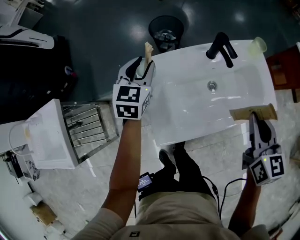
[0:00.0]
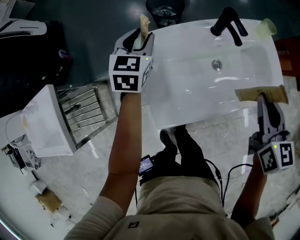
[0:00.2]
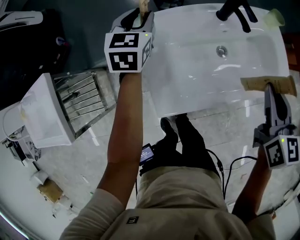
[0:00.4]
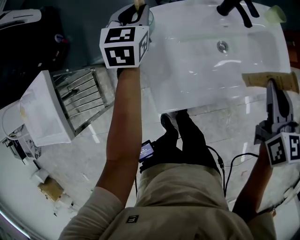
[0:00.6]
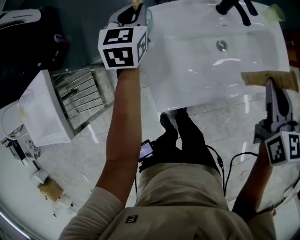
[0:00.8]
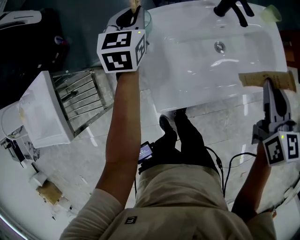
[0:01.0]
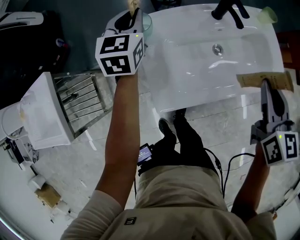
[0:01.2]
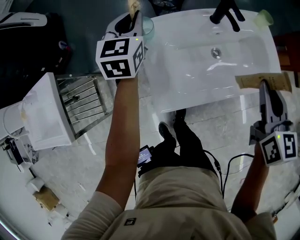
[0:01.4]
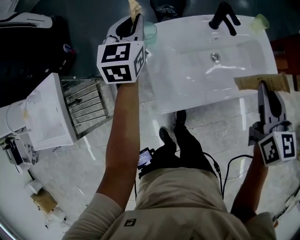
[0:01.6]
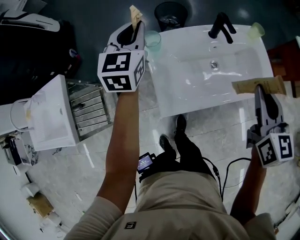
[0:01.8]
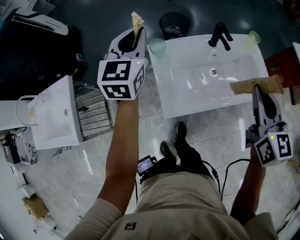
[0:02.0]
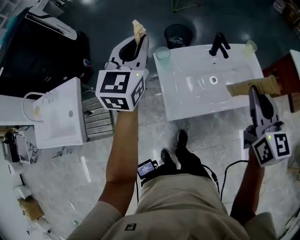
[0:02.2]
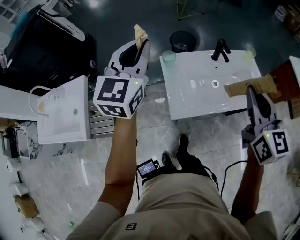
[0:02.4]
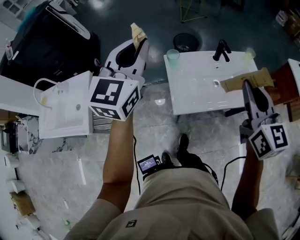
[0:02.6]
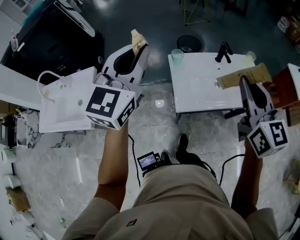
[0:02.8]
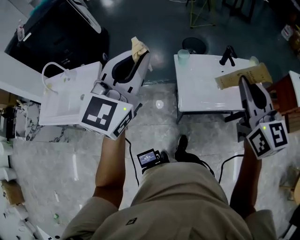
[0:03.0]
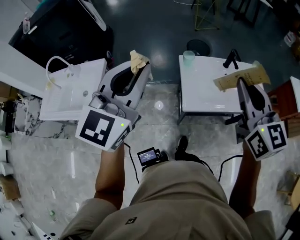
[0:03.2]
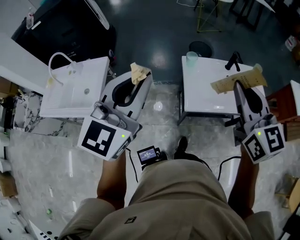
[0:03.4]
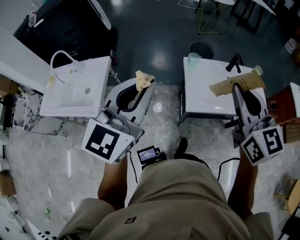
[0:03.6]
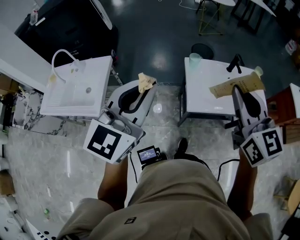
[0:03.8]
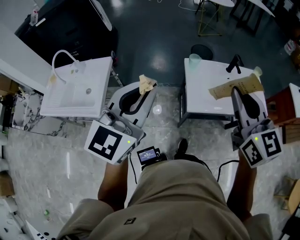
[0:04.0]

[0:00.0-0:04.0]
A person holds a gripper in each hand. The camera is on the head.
0:00.0 to 0:01.4: The left gripper closes.
0:01.4 to 0:02.6: The right gripper is displaced upward, backward and to the left by roughly 25 cm, and turns by some 20 degrees. Meanwhile the left gripper goes roughly 40 cm upward and backward, and swivels about 20 degrees.
0:02.6 to 0:04.0: The right gripper heads to the left and backward, covering roughly 20 cm, while the left gripper goes approximately 25 cm backward and to the left.

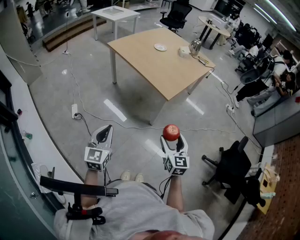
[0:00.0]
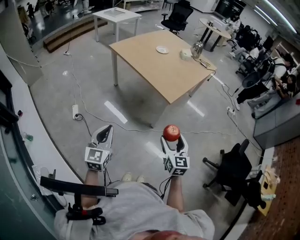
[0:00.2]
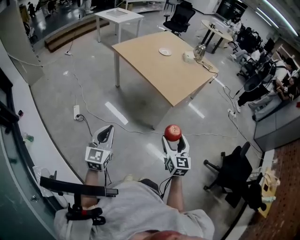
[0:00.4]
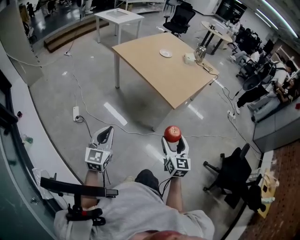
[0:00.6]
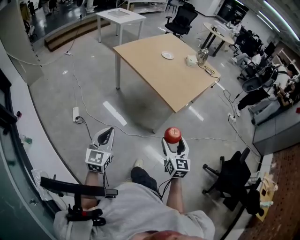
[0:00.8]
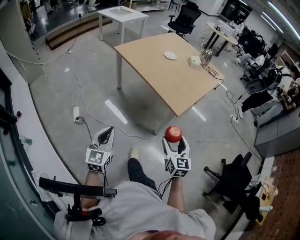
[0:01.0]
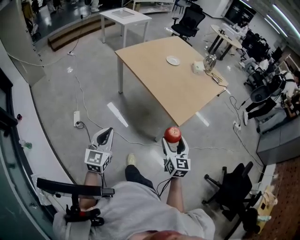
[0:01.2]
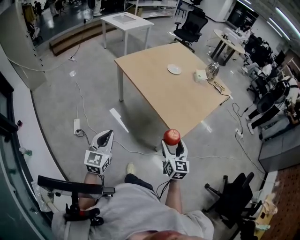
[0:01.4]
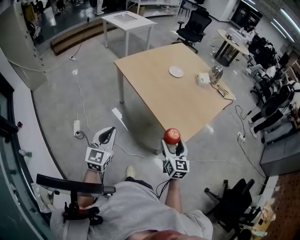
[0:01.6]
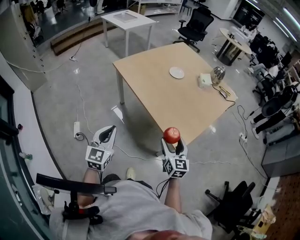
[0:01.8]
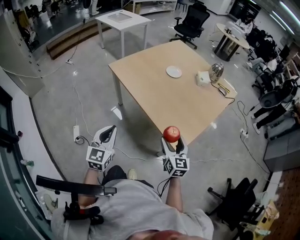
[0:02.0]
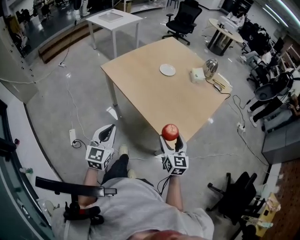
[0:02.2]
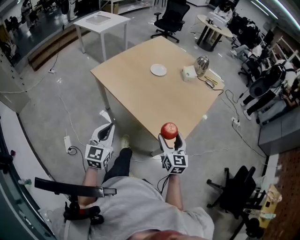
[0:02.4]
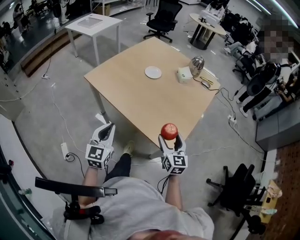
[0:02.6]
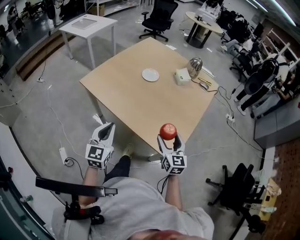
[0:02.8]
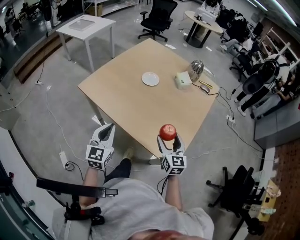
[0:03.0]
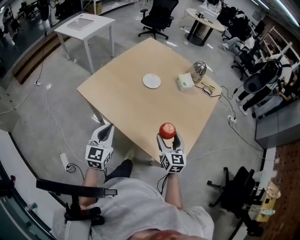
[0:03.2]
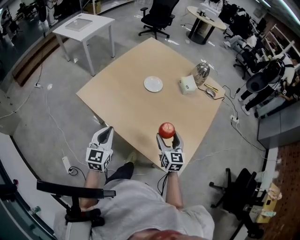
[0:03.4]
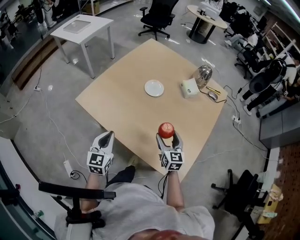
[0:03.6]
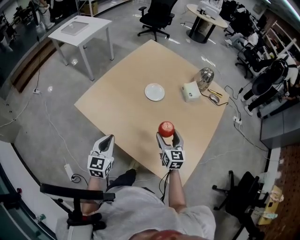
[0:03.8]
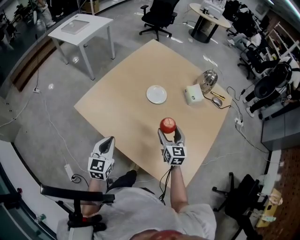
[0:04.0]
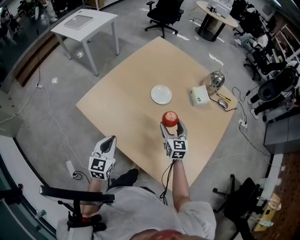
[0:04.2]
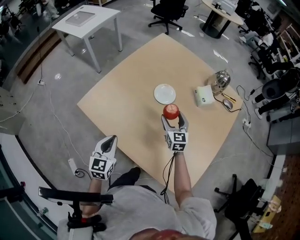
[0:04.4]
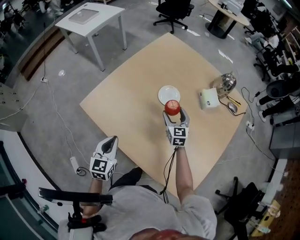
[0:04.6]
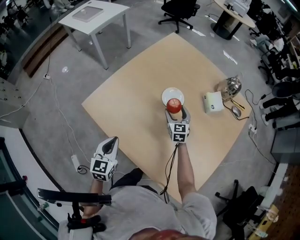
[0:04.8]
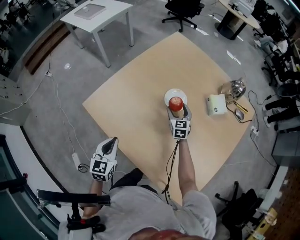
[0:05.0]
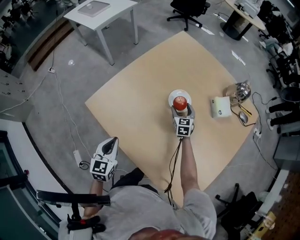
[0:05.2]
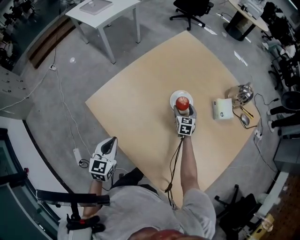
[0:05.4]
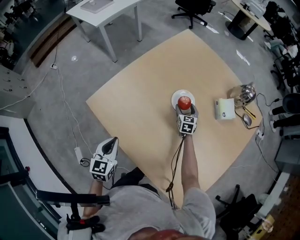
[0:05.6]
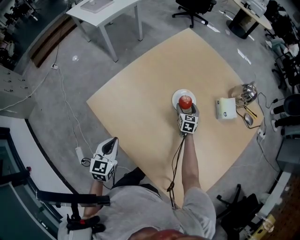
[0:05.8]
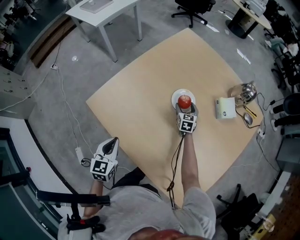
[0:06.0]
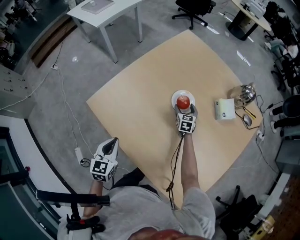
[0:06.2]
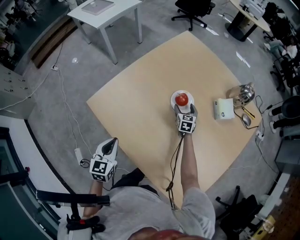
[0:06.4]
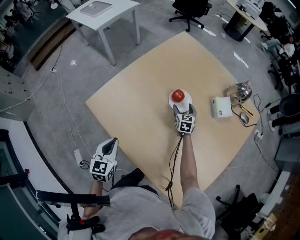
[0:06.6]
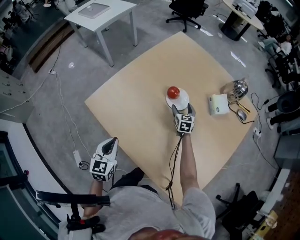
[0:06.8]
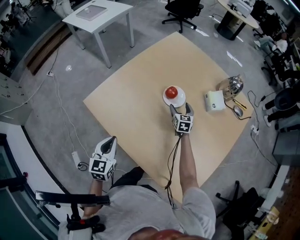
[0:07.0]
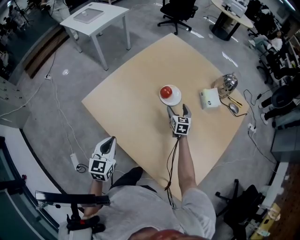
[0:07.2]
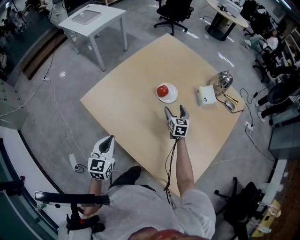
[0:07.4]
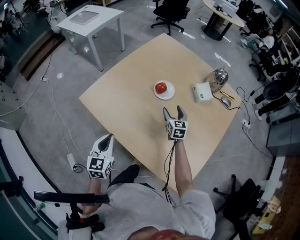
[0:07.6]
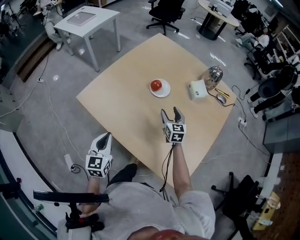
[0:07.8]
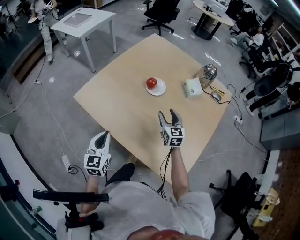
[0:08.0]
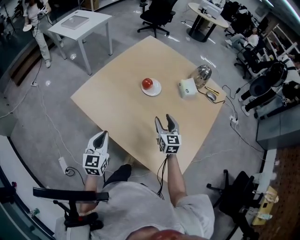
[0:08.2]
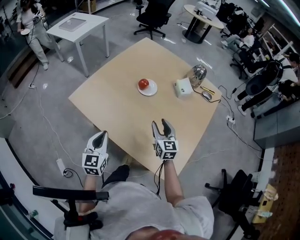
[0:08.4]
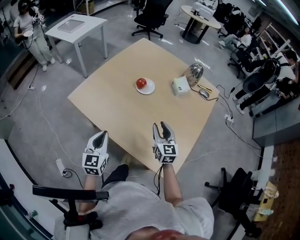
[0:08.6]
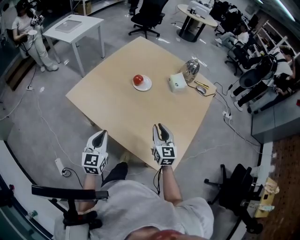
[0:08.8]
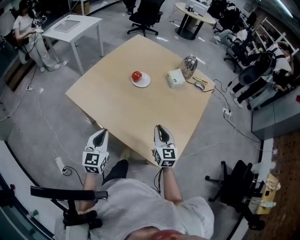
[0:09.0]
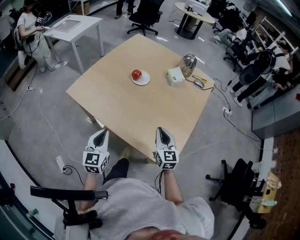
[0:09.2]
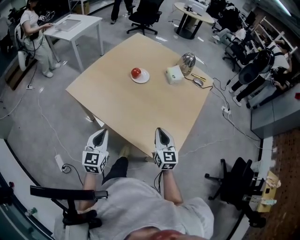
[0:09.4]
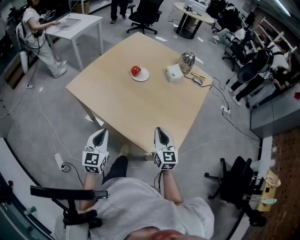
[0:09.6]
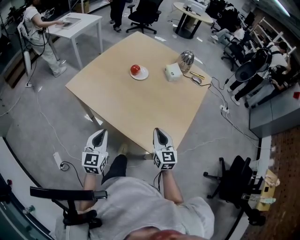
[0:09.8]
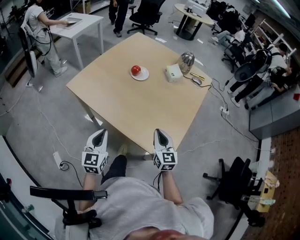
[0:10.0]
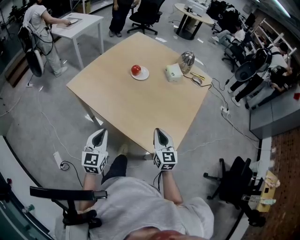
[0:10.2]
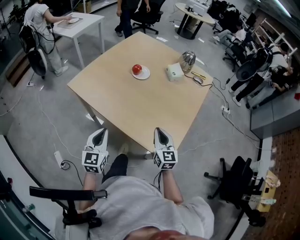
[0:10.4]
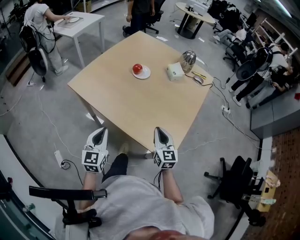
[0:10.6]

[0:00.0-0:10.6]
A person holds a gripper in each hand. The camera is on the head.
0:00.0 to 0:01.6: Both grippers move forward, roughly 35 cm.
0:01.6 to 0:03.0: Both grippers move forward, some 25 cm.
0:03.0 to 0:04.6: The right gripper is displaced forward by some 40 cm; the left gripper is displaced forward and downward by roughly 25 cm.
0:04.6 to 0:06.0: The left gripper shifts by approximately 5 cm, while the right gripper travels downward and forward by approximately 20 cm.
0:06.0 to 0:07.6: The left gripper is displaced backward and upward by roughly 10 cm. Meanwhile the right gripper goes approximately 20 cm backward and upward.
0:07.6 to 0:09.0: The right gripper moves backward, approximately 30 cm, and closes its fingers, while the left gripper moves backward and to the right, some 10 cm.
0:09.0 to 0:10.6: The grippers both shift backward by some 10 cm.

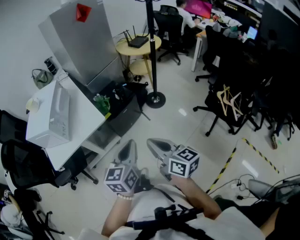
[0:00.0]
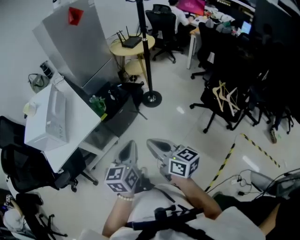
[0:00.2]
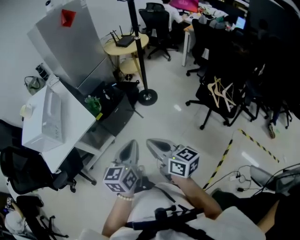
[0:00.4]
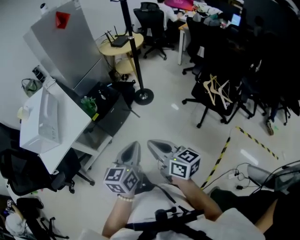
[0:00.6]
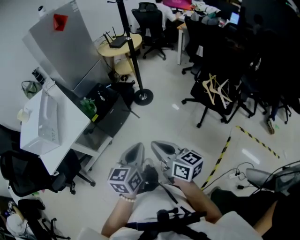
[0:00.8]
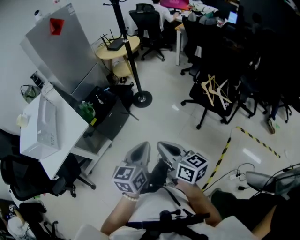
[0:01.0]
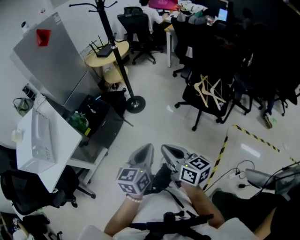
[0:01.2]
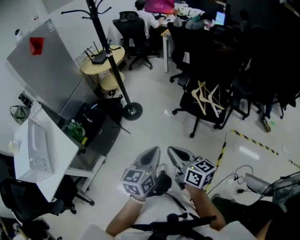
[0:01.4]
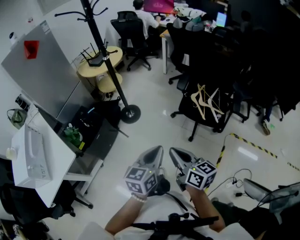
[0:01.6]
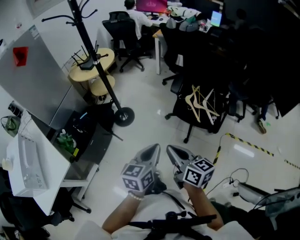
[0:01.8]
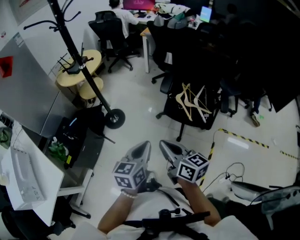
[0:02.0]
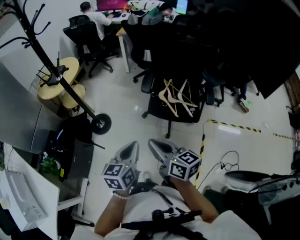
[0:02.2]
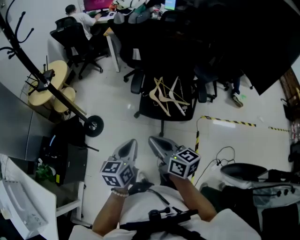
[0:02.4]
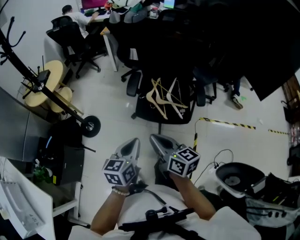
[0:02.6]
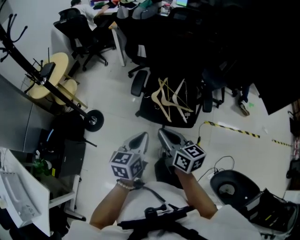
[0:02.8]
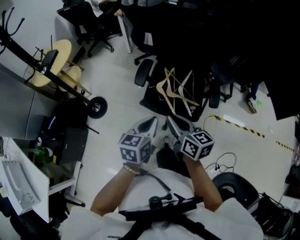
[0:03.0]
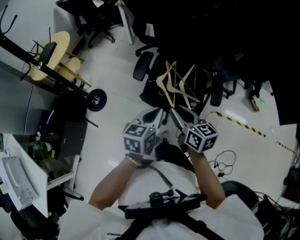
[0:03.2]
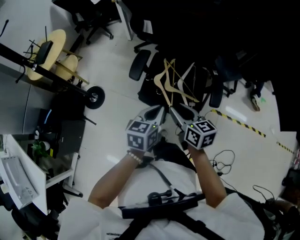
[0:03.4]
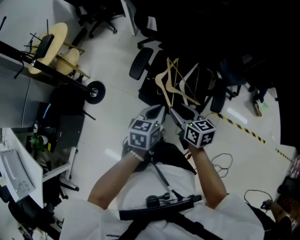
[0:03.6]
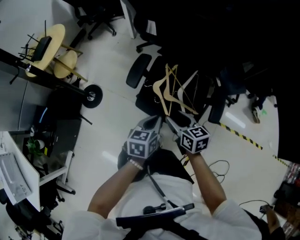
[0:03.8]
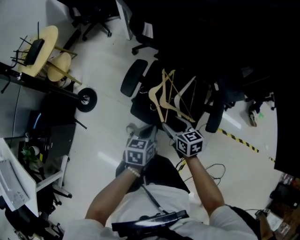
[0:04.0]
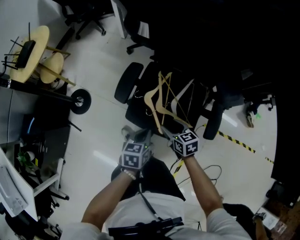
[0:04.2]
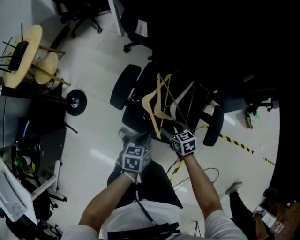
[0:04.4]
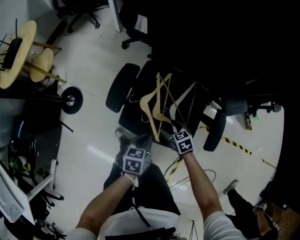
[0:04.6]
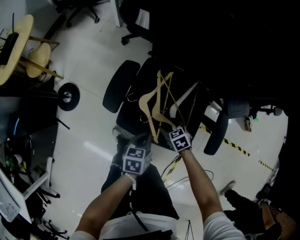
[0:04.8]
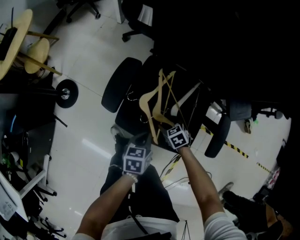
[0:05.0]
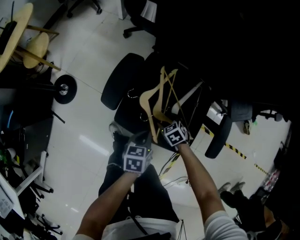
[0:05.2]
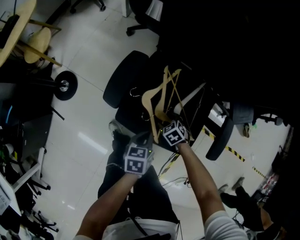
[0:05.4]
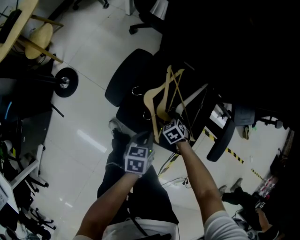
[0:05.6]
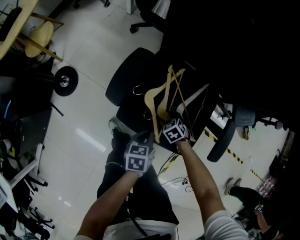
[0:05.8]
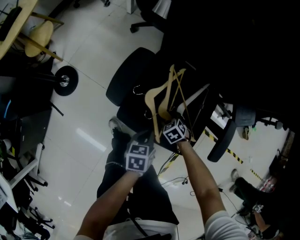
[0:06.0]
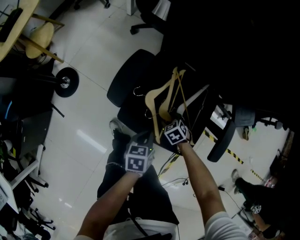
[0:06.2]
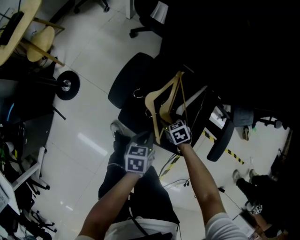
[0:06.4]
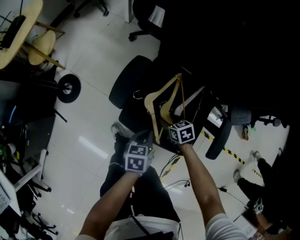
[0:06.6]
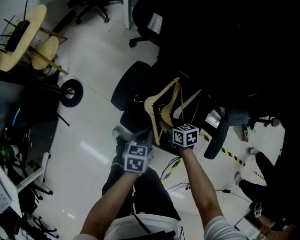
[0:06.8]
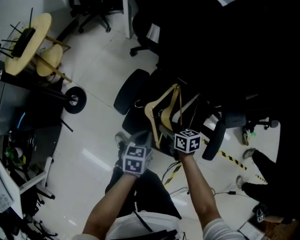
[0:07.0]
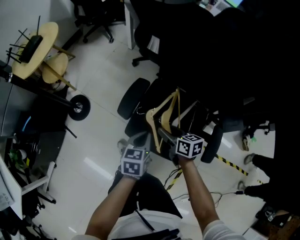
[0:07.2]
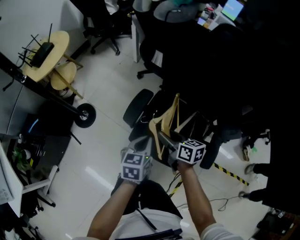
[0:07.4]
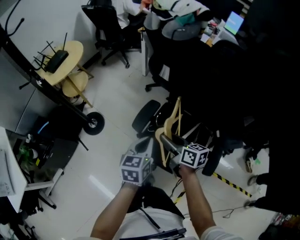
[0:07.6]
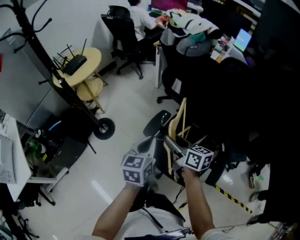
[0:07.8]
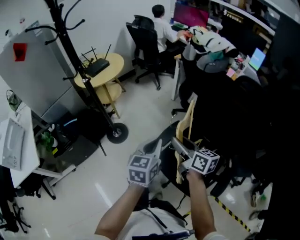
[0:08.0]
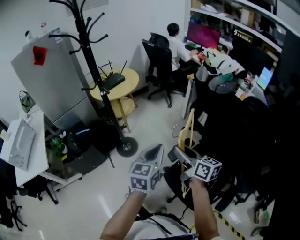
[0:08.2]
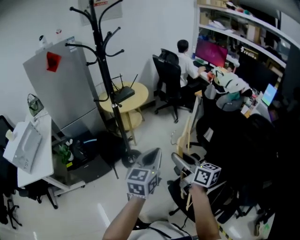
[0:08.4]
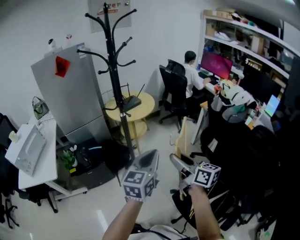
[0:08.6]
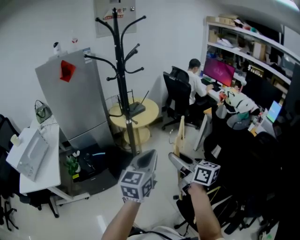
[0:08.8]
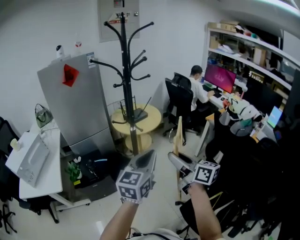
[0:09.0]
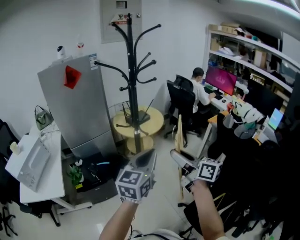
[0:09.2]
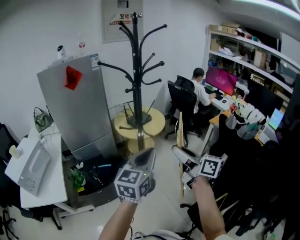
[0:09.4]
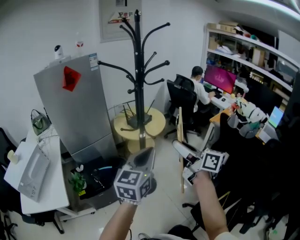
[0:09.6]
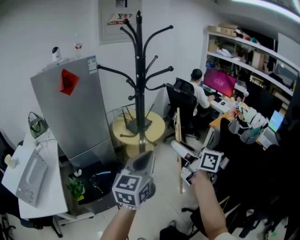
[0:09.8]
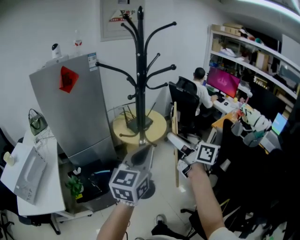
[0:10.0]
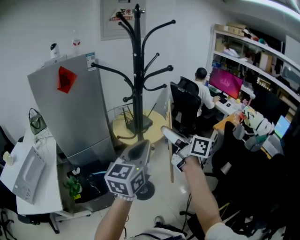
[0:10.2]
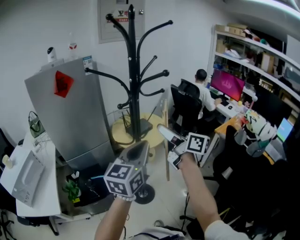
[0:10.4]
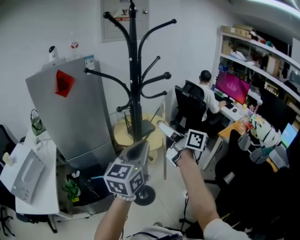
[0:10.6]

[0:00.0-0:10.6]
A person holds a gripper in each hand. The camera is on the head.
0:00.0 to 0:01.6: The right gripper moves some 35 cm, and changes its angle by some 20 degrees. The left gripper moves roughly 35 cm, and changes its angle by about 30 degrees.
0:01.6 to 0:03.0: Both grippers travel together forward and to the right, approximately 40 cm.
0:03.0 to 0:04.6: The grippers both shift downward and forward by some 40 cm. The right gripper tilts its fingers about 40 degrees downward, and opens up, while the left gripper rotates about 30 degrees.
0:04.6 to 0:06.0: Both grippers move downward, about 10 cm. The right gripper rotates approximately 30 degrees.
0:06.0 to 0:07.6: Both grippers move upward, approximately 35 cm. The right gripper points its fingers approximately 60 degrees further upward; the left gripper swivels about 30 degrees.
0:07.6 to 0:09.0: The left gripper ends up approximately 50 cm from where it was, and changes its angle by some 40 degrees. Meanwhile the right gripper ends up roughly 50 cm from where it was, and rotates roughly 40 degrees.
0:09.0 to 0:10.6: Both grippers travel together forward, about 30 cm.
